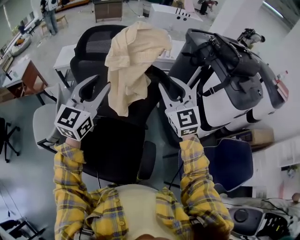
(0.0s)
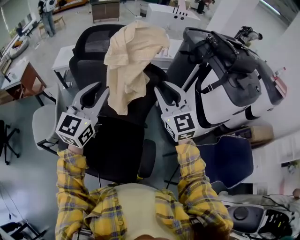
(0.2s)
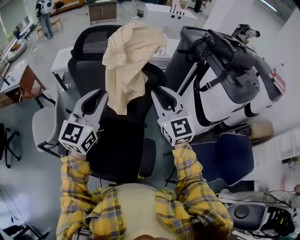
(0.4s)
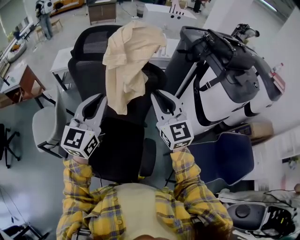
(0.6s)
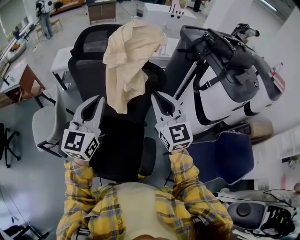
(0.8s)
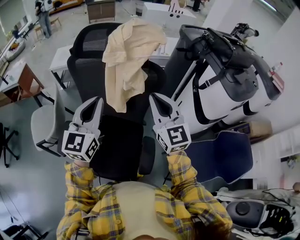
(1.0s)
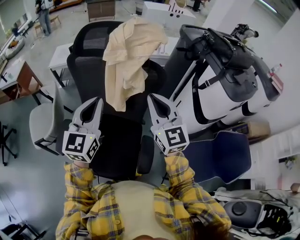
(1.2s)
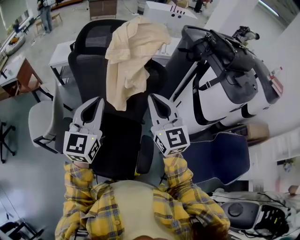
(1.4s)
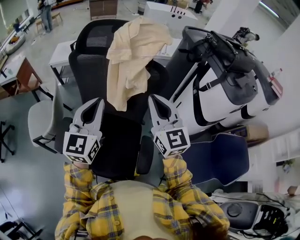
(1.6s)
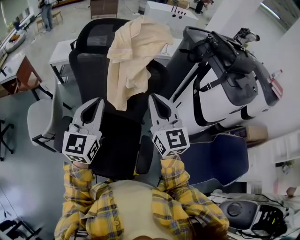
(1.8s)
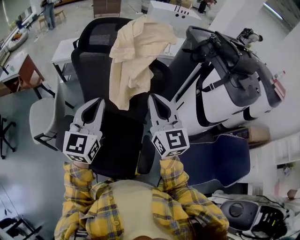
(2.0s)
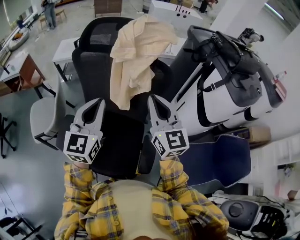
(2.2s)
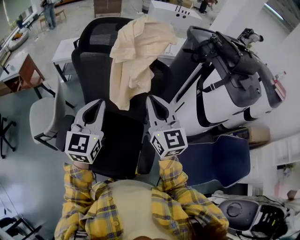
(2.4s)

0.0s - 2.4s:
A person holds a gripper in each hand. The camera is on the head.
0.0s - 1.2s: Both grippers move backward, approximately 10 cm. The left gripper closes up, while the right gripper closes its fingers.
1.2s - 2.4s: The grippers move only a little.

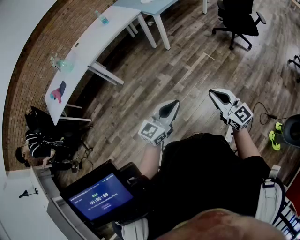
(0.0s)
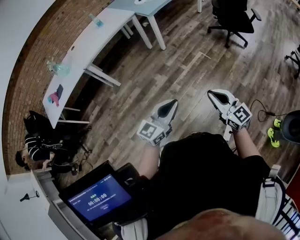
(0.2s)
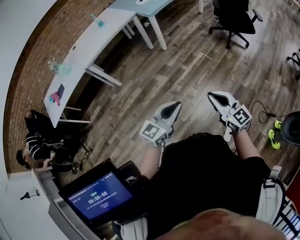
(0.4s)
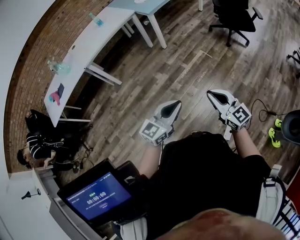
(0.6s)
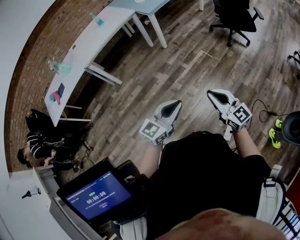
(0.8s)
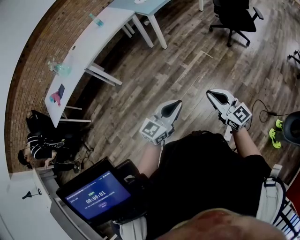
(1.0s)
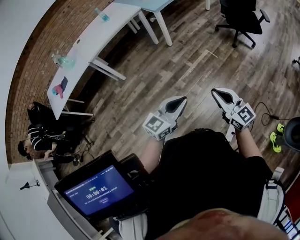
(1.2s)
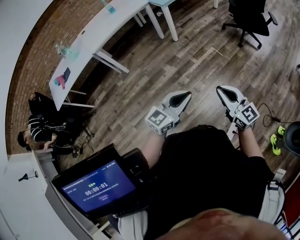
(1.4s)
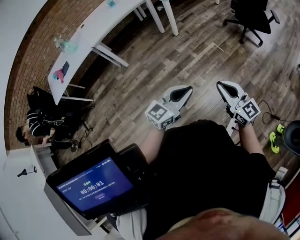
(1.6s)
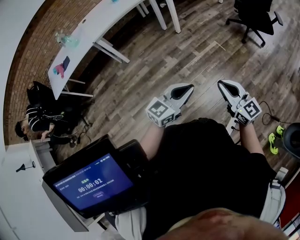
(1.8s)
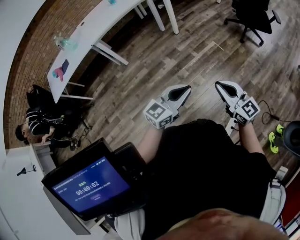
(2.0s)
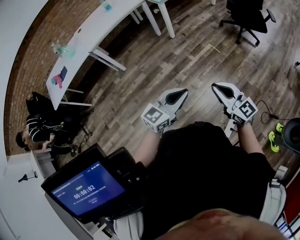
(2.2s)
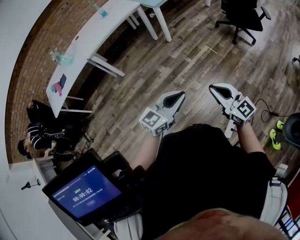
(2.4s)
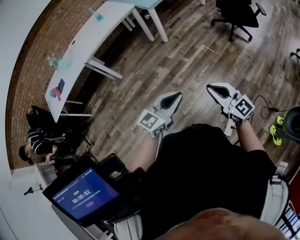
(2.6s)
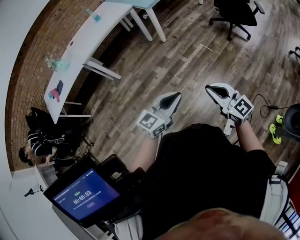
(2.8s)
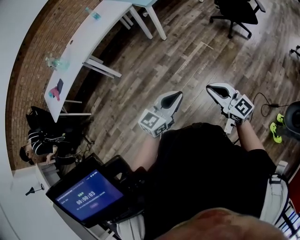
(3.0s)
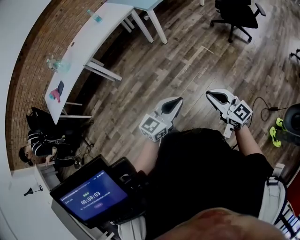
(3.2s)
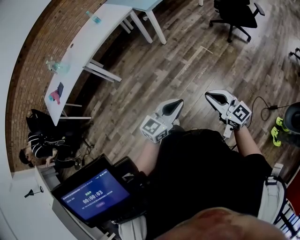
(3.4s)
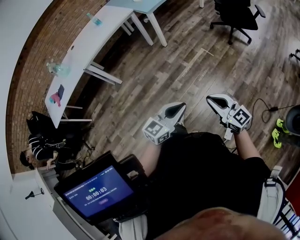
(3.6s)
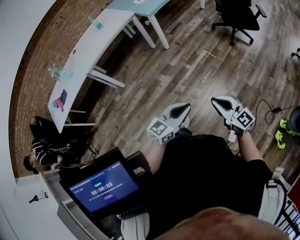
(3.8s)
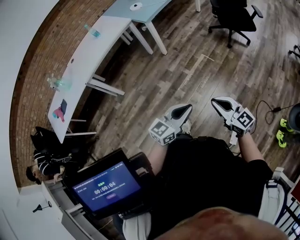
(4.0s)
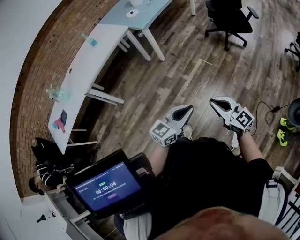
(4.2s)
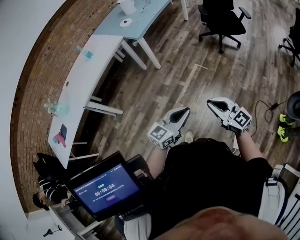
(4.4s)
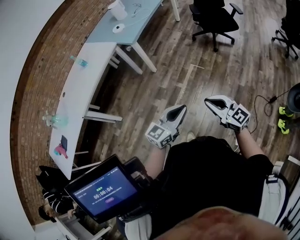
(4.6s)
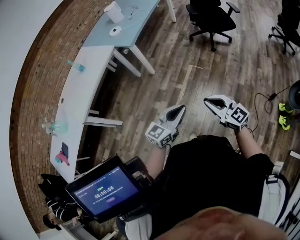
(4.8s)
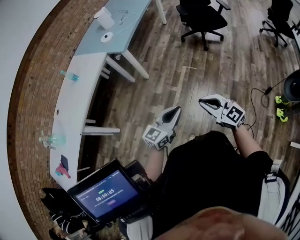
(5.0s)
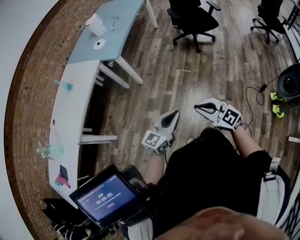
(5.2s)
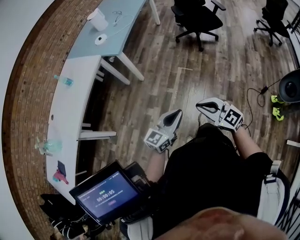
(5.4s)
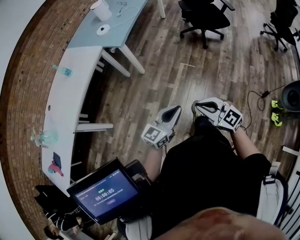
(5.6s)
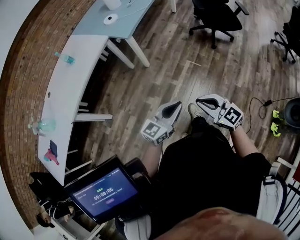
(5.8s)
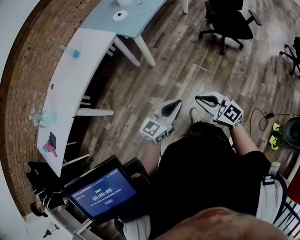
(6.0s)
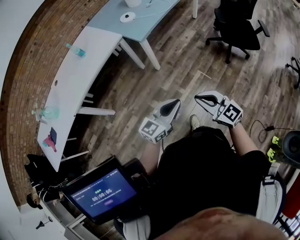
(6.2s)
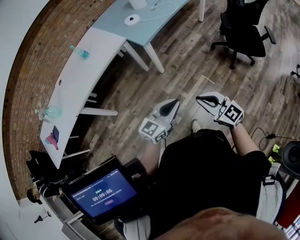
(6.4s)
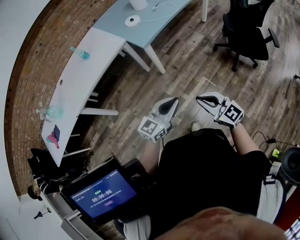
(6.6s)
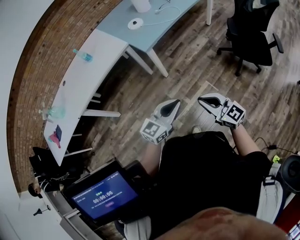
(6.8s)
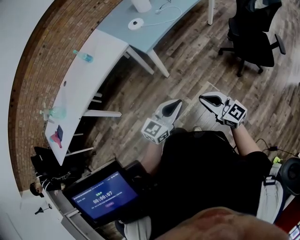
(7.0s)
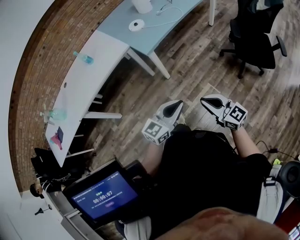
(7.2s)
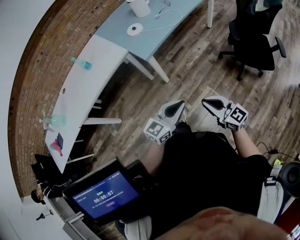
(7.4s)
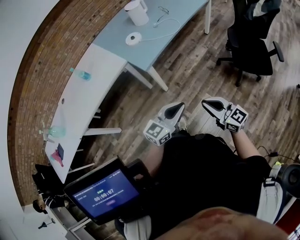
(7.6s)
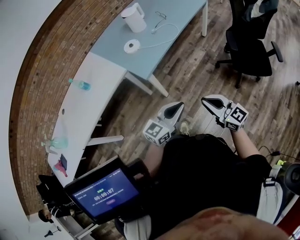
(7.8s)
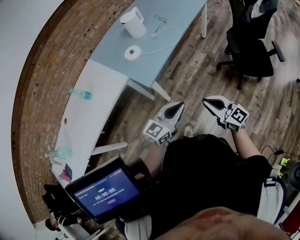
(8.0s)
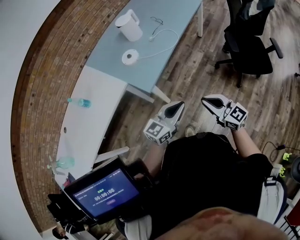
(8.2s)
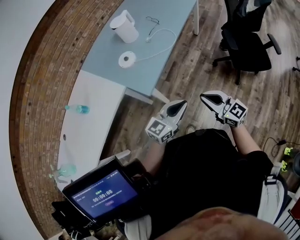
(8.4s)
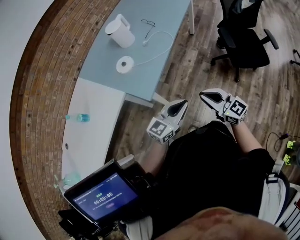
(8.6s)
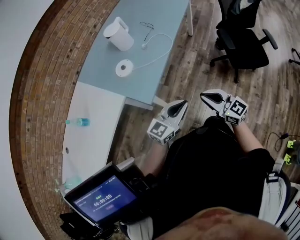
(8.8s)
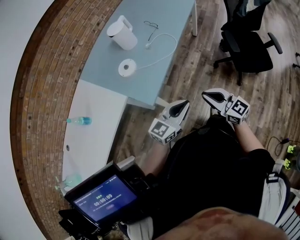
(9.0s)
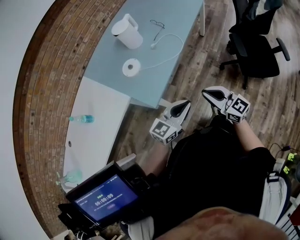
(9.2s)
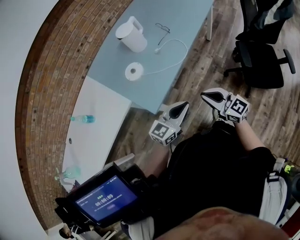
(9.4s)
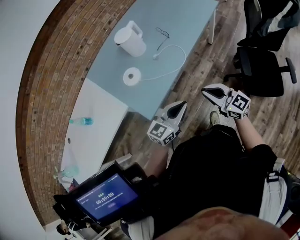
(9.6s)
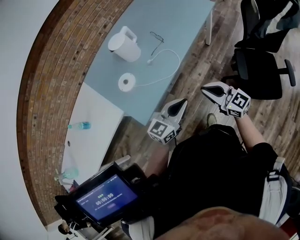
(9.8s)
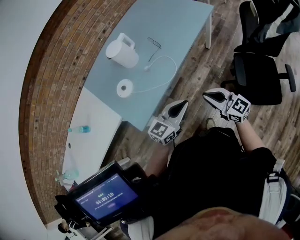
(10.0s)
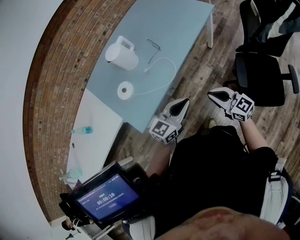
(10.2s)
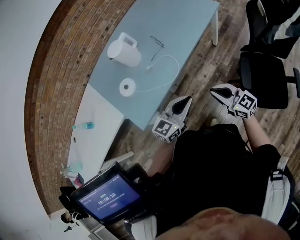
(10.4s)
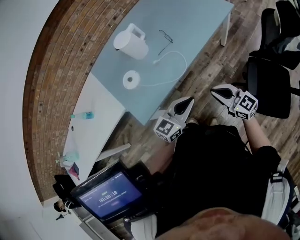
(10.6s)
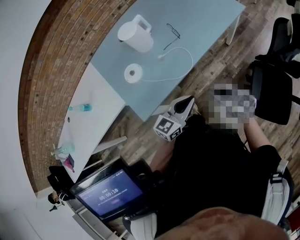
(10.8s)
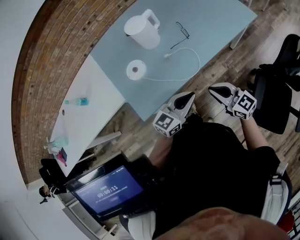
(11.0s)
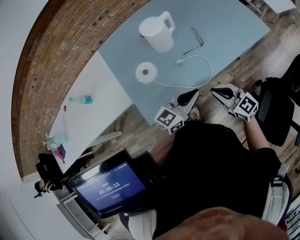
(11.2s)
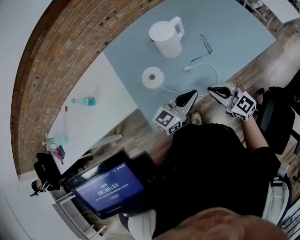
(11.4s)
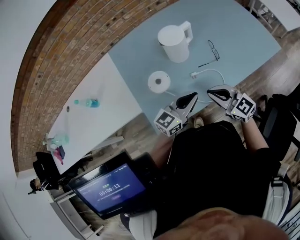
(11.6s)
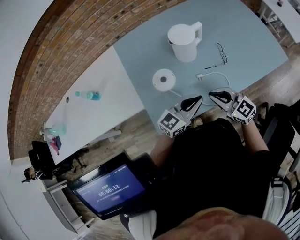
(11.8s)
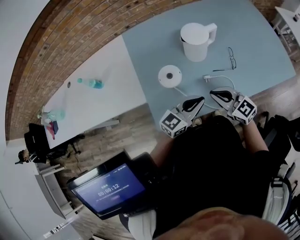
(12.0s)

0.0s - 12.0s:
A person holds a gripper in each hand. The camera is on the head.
0.0s - 1.6s: The left gripper shifts about 5 cm to the right.
1.6s - 3.0s: The grippers make only small movements.
3.0s - 4.4s: The grippers both shift forward by about 10 cm.
4.4s - 6.0s: The right gripper shifts about 20 cm forward and to the left; the left gripper travels forward by some 20 cm.
6.0s - 7.6s: The two grippers go about 25 cm forward.
7.6s - 9.0s: Both grippers move forward, some 20 cm.
9.0s - 10.4s: The grippers both shift forward and to the right by approximately 30 cm.
10.4s - 12.0s: The left gripper moves some 25 cm, and turns by roughly 20 degrees. Meanwhile the right gripper changes place by roughly 35 cm, and rotates some 40 degrees.

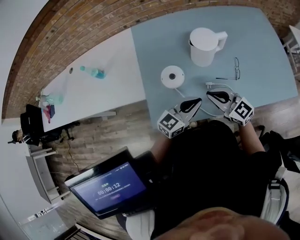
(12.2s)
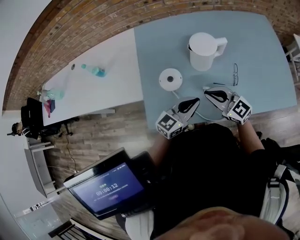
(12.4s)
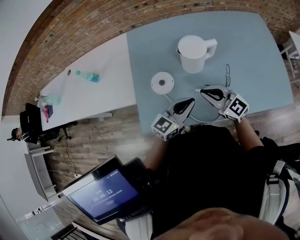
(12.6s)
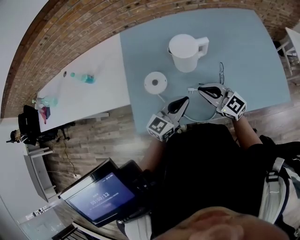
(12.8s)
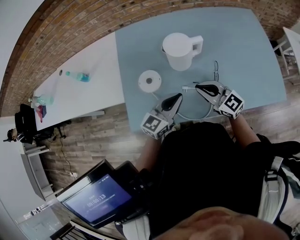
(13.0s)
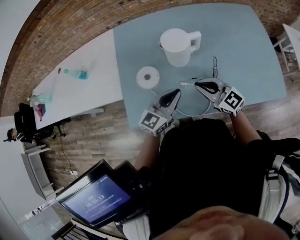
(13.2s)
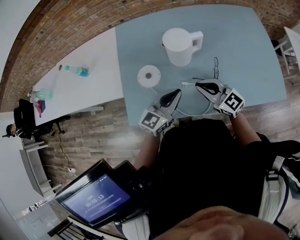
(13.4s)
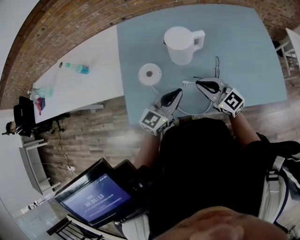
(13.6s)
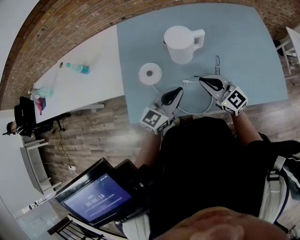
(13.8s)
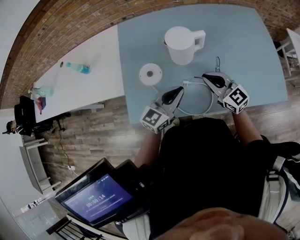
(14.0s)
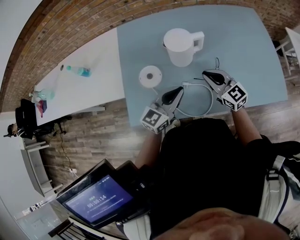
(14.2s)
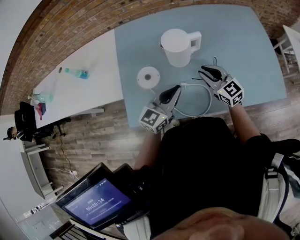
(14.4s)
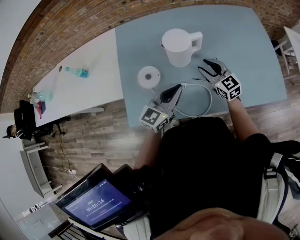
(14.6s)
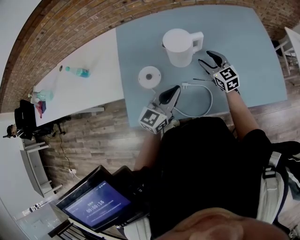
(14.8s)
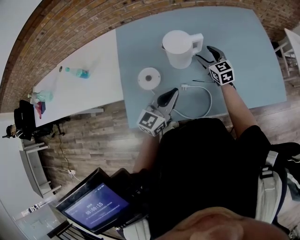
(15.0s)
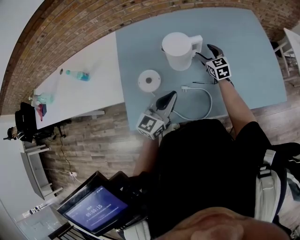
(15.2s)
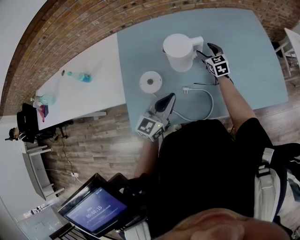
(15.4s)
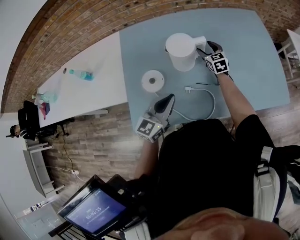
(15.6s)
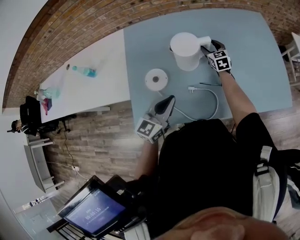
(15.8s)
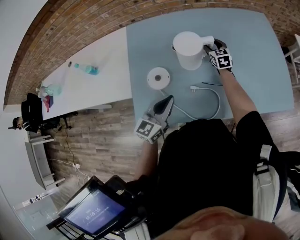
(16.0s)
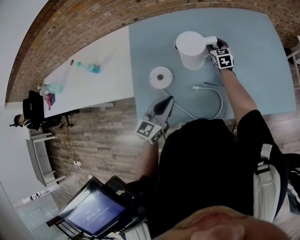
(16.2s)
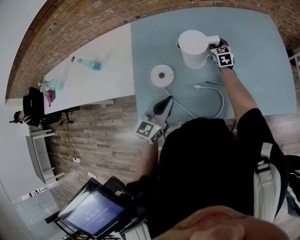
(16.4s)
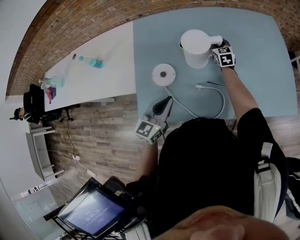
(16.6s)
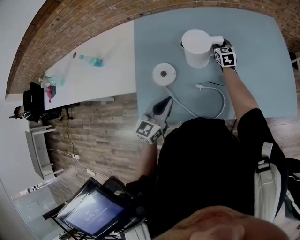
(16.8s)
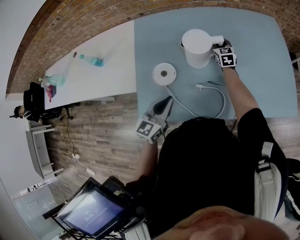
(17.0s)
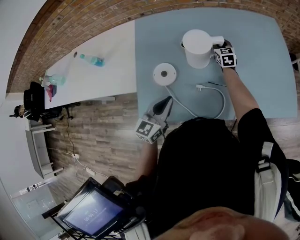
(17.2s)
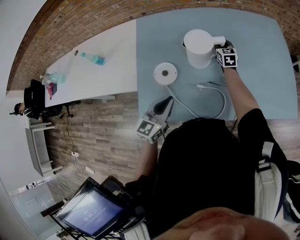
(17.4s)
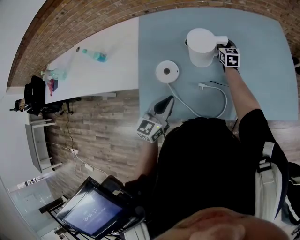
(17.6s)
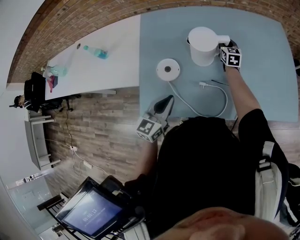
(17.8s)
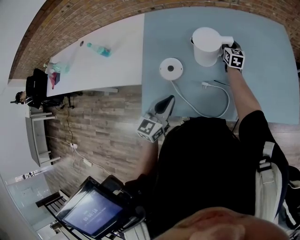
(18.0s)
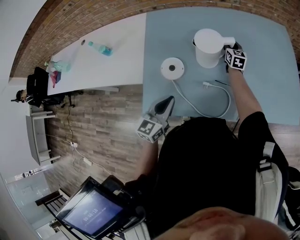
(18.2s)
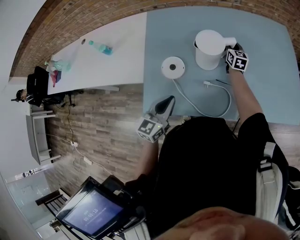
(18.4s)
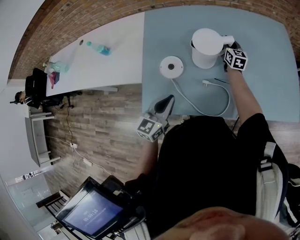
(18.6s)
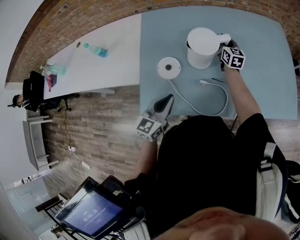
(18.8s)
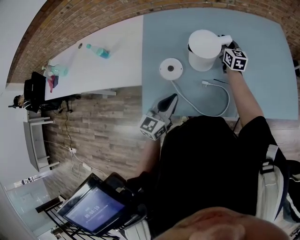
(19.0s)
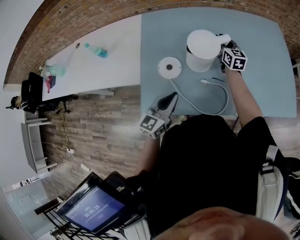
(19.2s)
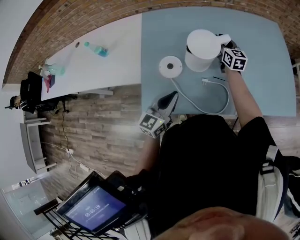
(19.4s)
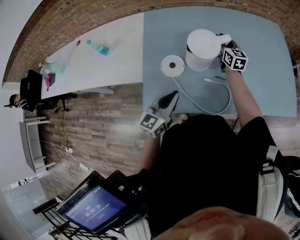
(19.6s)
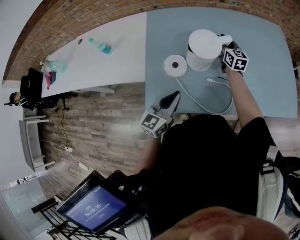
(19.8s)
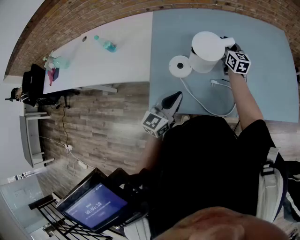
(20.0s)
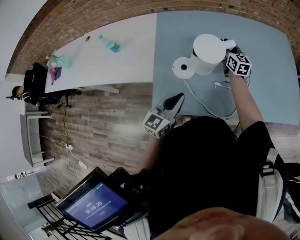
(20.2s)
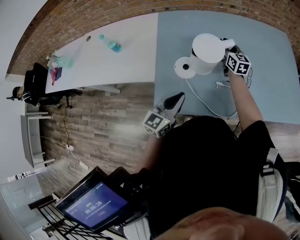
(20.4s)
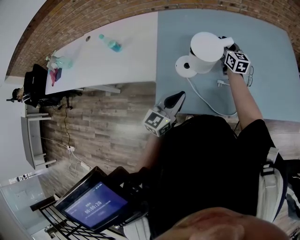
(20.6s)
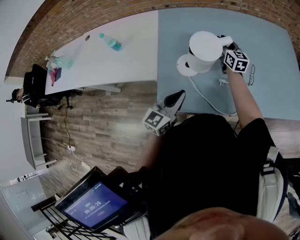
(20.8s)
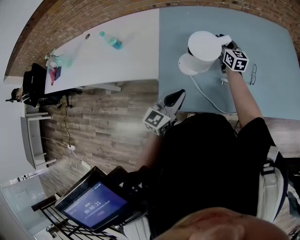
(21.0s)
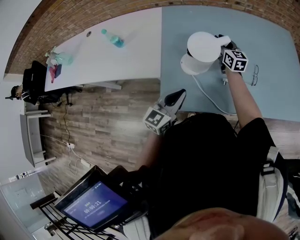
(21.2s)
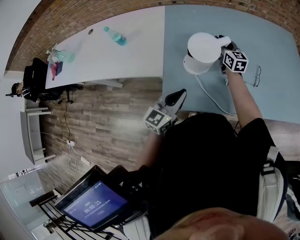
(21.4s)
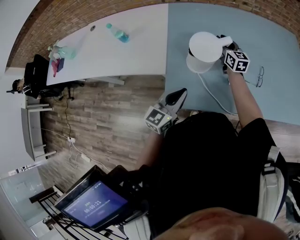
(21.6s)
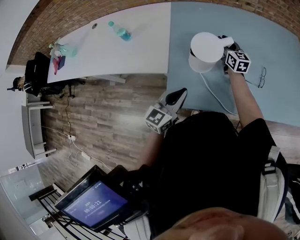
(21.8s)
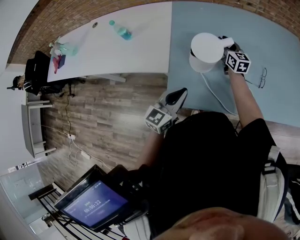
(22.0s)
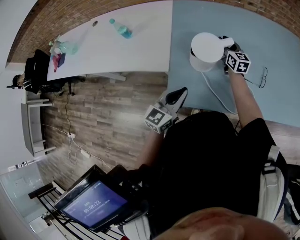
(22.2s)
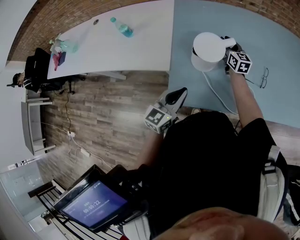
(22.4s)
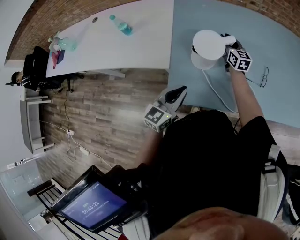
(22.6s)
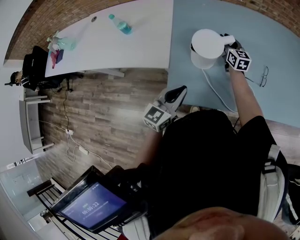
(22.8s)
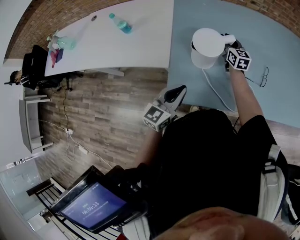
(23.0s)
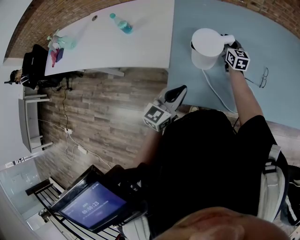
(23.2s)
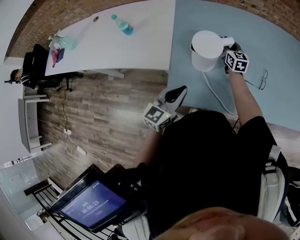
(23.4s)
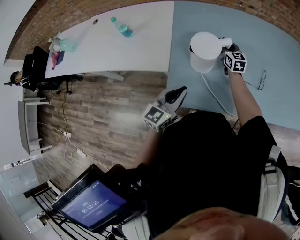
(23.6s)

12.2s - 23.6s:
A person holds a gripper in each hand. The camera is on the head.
12.2s - 13.6s: The right gripper goes about 10 cm to the right. The left gripper ends up roughly 5 cm from where it was.
13.6s - 15.0s: The right gripper goes some 20 cm forward and downward, turns by about 30 degrees, and opens up.
15.0s - 16.4s: The right gripper heads forward and downward, covering about 10 cm, and closes its fingers; the left gripper heads to the left, covering roughly 5 cm.
16.4s - 17.8s: There are only small adjustments of the grippers.
17.8s - 19.4s: The right gripper moves upward and backward, roughly 10 cm.
19.4s - 20.8s: Both grippers move to the left, about 10 cm.
20.8s - 22.2s: The grippers both shift to the left by about 5 cm.
22.2s - 23.6s: There are only small adjustments of the grippers.
